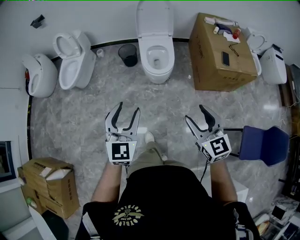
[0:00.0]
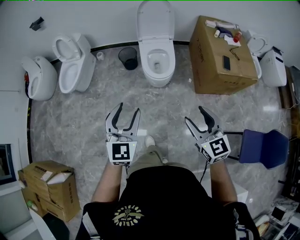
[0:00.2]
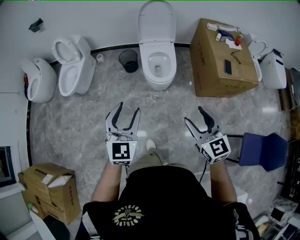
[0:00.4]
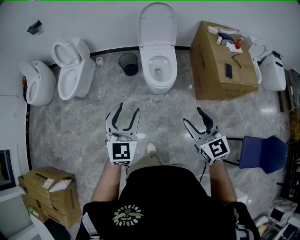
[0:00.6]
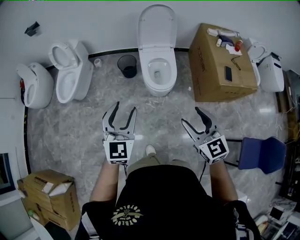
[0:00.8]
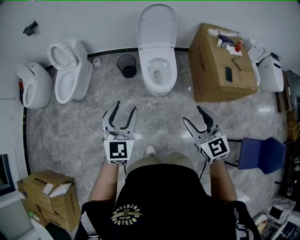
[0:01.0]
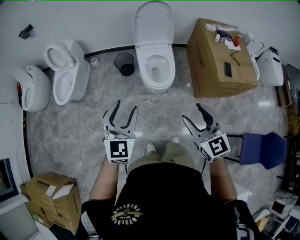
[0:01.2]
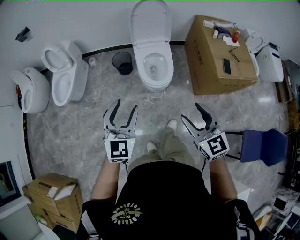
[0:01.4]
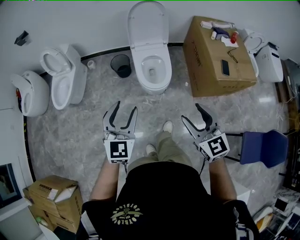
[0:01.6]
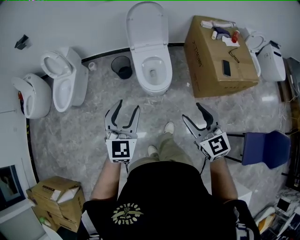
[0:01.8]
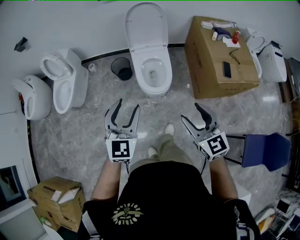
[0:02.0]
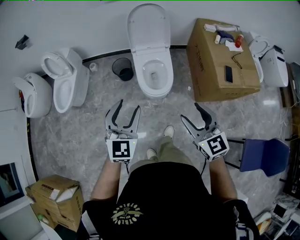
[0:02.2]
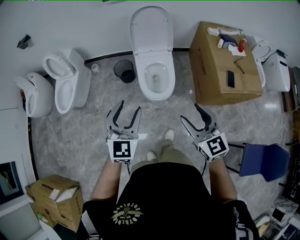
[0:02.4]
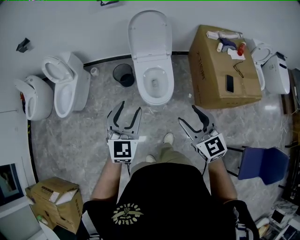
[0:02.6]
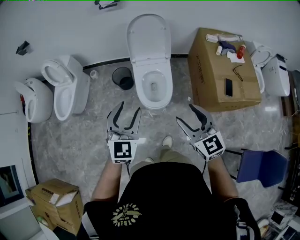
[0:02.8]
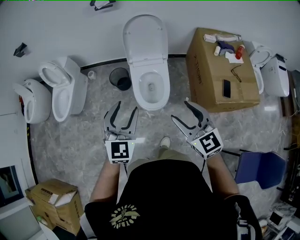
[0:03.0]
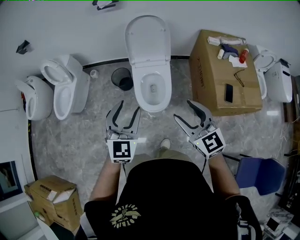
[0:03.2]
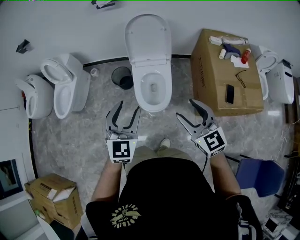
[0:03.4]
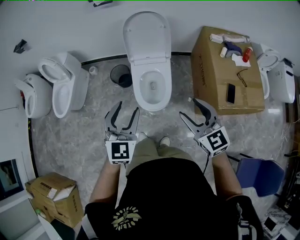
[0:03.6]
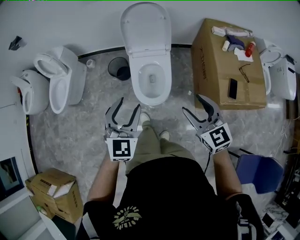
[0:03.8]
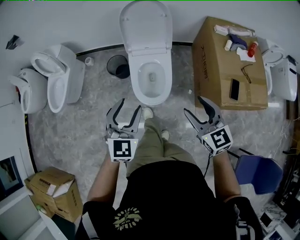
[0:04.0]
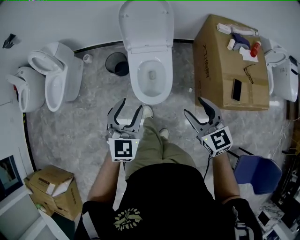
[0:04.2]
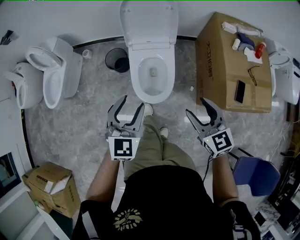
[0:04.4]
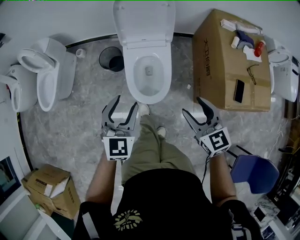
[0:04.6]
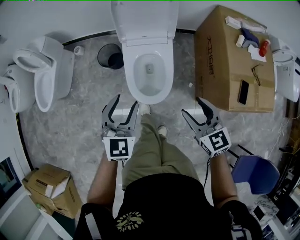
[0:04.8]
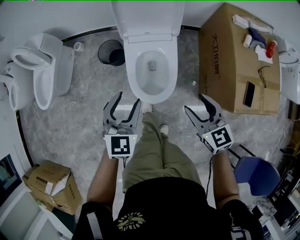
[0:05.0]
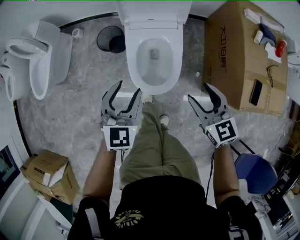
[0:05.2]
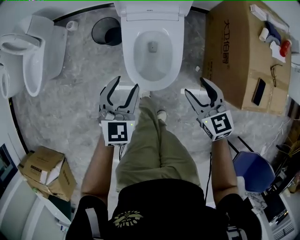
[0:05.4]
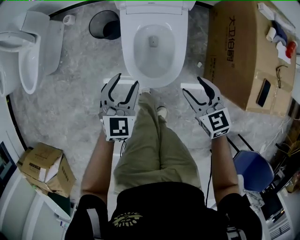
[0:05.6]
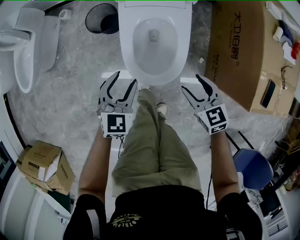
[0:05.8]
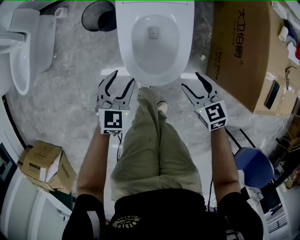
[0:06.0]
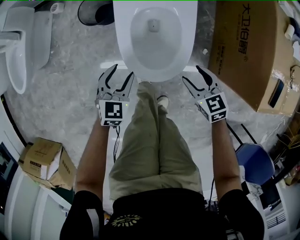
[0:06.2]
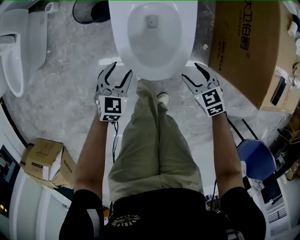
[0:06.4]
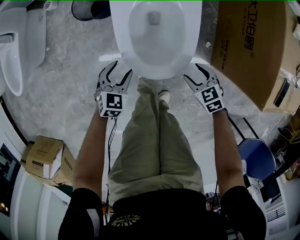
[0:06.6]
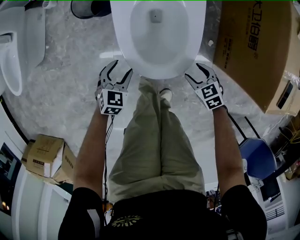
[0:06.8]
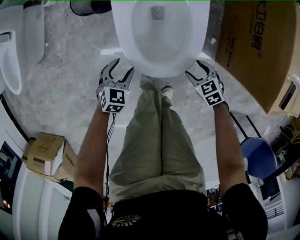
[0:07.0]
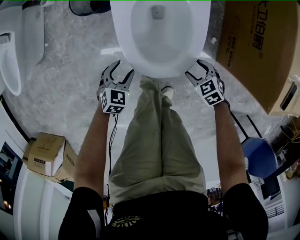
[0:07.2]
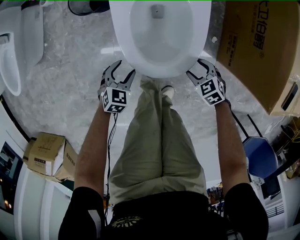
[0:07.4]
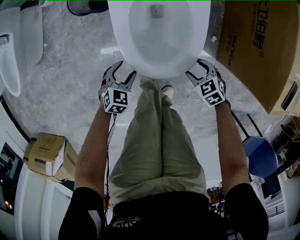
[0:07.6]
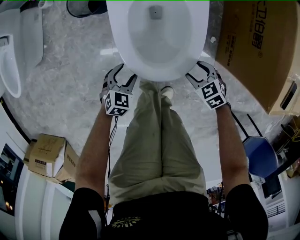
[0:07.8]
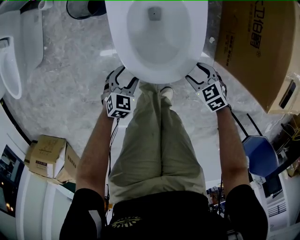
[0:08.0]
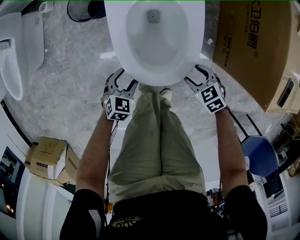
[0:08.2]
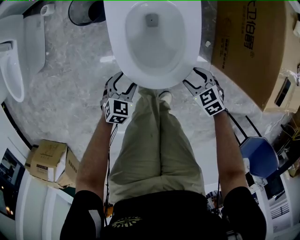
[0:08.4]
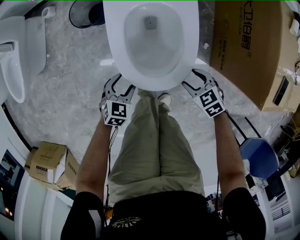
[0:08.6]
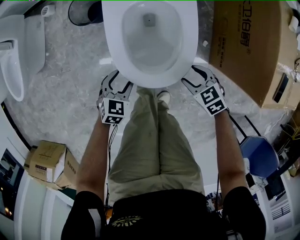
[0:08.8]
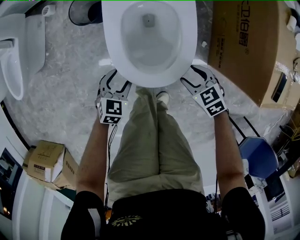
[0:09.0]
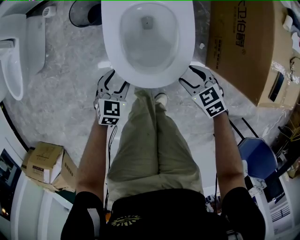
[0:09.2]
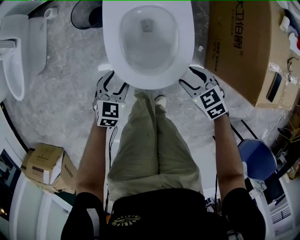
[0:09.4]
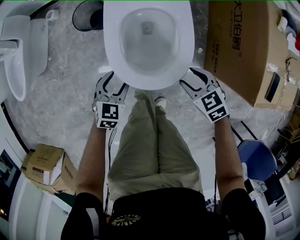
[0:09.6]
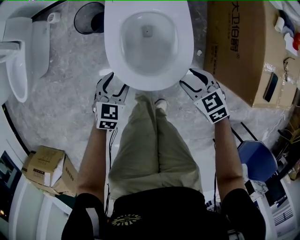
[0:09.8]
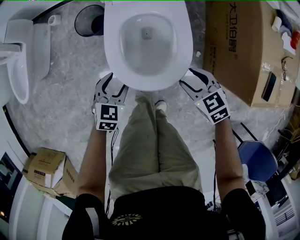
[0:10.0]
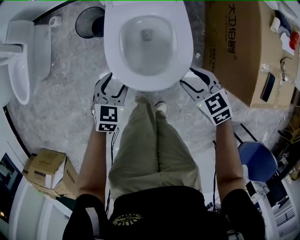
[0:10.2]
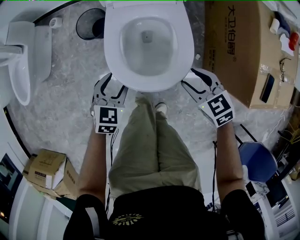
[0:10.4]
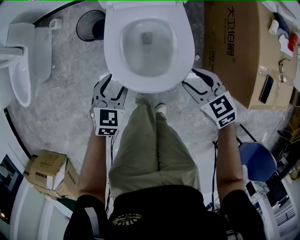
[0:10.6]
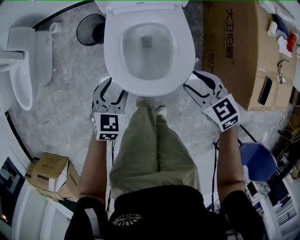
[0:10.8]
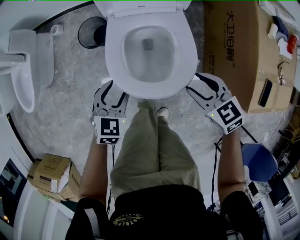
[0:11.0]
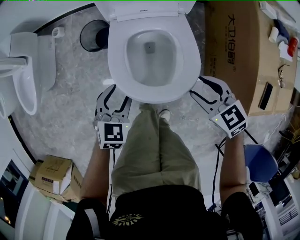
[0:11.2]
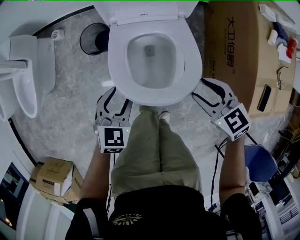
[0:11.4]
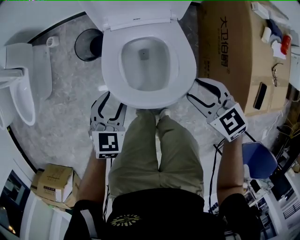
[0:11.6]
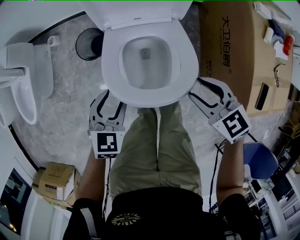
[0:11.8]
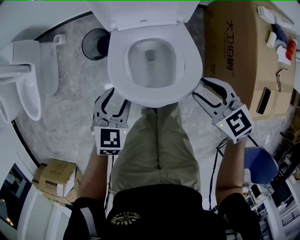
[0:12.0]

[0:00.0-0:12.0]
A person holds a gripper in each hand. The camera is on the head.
0.0 to 1.6 s: Both grippers move forward, some 20 cm.
1.6 to 3.0 s: The left gripper heads forward and to the right, covering some 20 cm. Meanwhile the right gripper moves forward, approximately 20 cm.
3.0 to 4.4 s: The left gripper goes about 15 cm downward and forward; the right gripper heads downward, forward and to the right, covering approximately 20 cm.
4.4 to 6.0 s: The grippers both shift downward by roughly 35 cm. The right gripper rotates about 20 degrees.
6.0 to 7.6 s: The grippers both shift downward by approximately 20 cm. The right gripper changes its angle by approximately 30 degrees. Meanwhile the left gripper swivels approximately 20 degrees.
7.6 to 9.0 s: Both grippers move upward, some 10 cm.
9.0 to 10.4 s: The grippers both shift upward and forward by some 15 cm.
10.4 to 12.0 s: The grippers both shift upward and forward by approximately 15 cm.

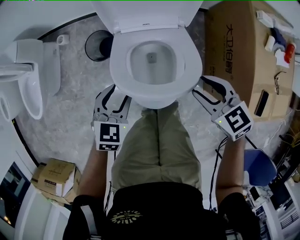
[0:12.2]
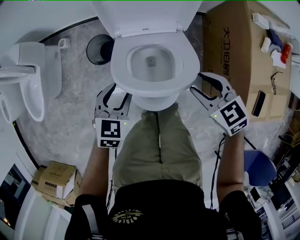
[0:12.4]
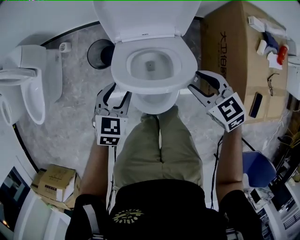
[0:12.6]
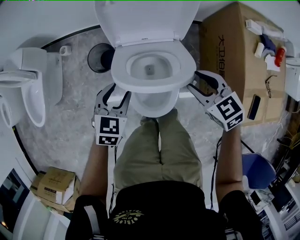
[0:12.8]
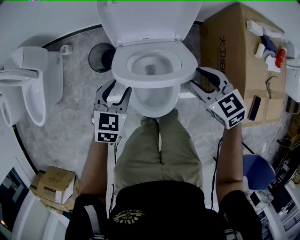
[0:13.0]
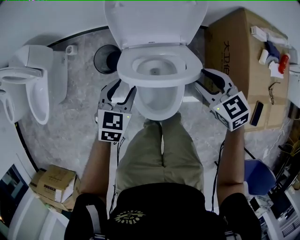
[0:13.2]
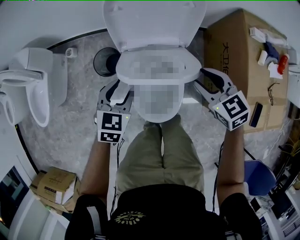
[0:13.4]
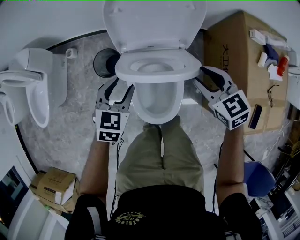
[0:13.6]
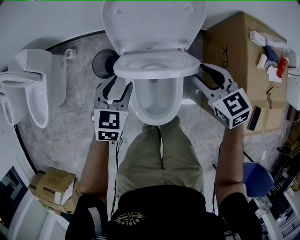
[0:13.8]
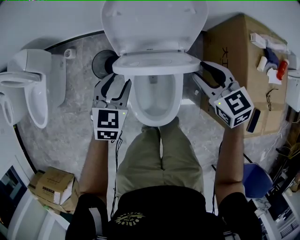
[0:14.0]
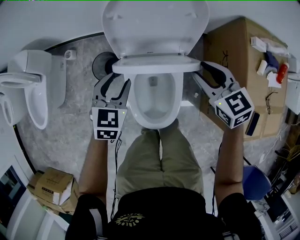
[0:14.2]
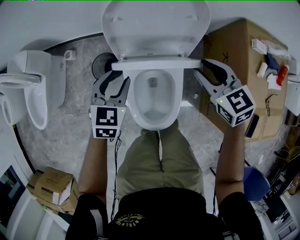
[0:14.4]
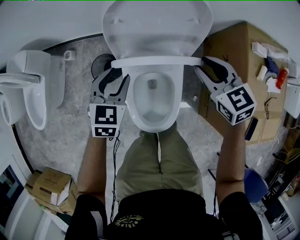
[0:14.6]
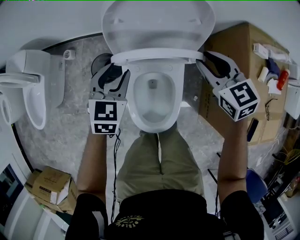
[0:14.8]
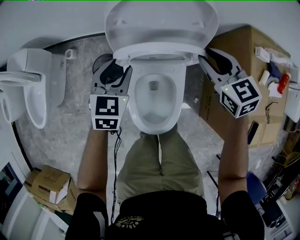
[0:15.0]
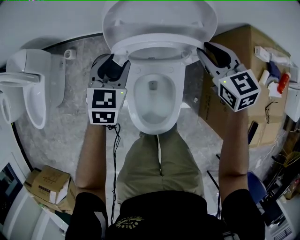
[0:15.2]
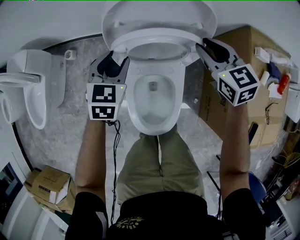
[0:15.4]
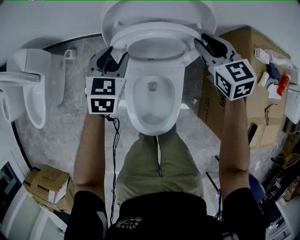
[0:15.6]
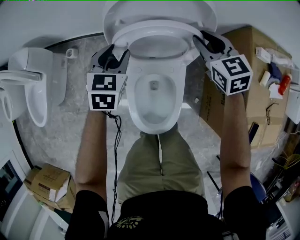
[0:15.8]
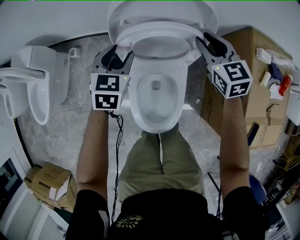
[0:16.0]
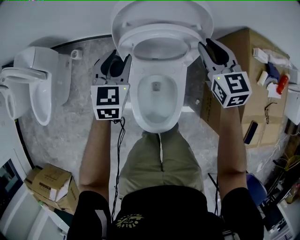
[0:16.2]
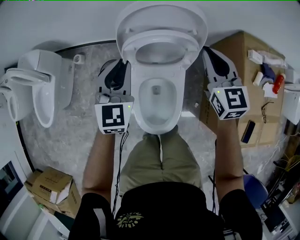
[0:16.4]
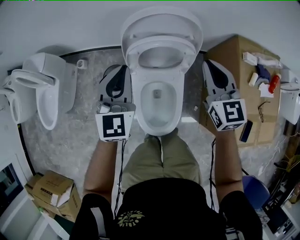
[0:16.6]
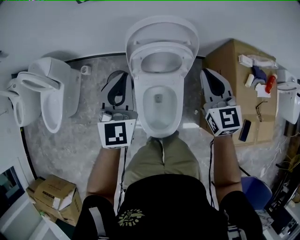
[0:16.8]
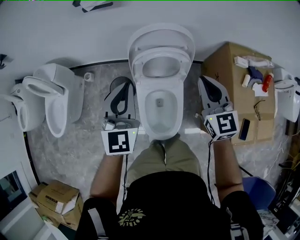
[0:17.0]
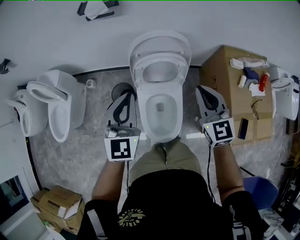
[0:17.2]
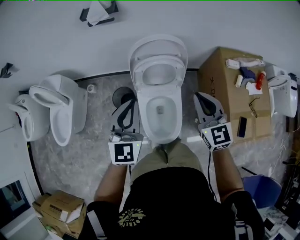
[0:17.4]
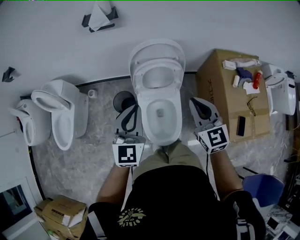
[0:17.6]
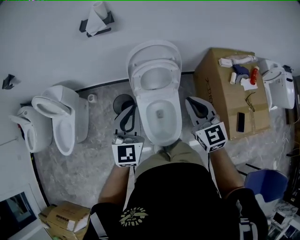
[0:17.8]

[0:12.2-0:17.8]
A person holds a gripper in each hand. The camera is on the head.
12.2 to 13.6 s: The two grippers go roughly 10 cm forward.
13.6 to 15.0 s: The grippers both shift forward by about 15 cm.
15.0 to 16.4 s: The two grippers go some 10 cm upward. The right gripper swivels about 20 degrees, and closes up. The left gripper closes up.
16.4 to 17.8 s: The left gripper goes approximately 25 cm upward and backward; the right gripper travels backward and upward by roughly 25 cm.

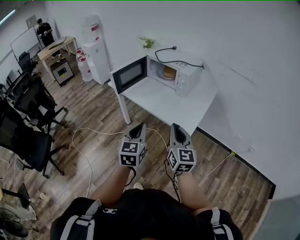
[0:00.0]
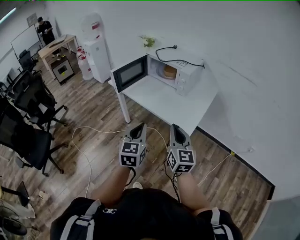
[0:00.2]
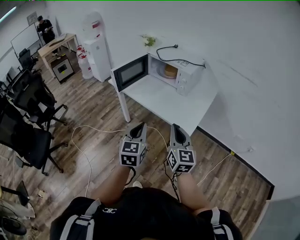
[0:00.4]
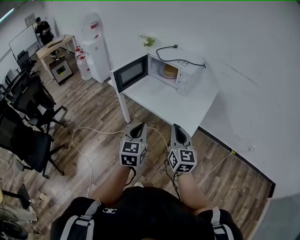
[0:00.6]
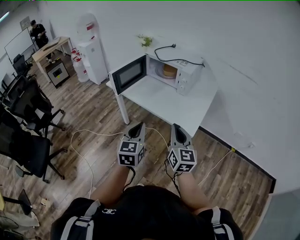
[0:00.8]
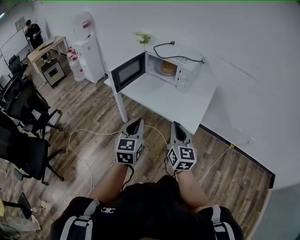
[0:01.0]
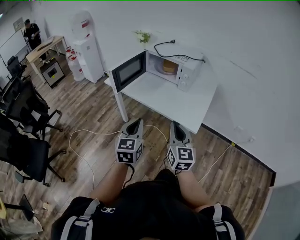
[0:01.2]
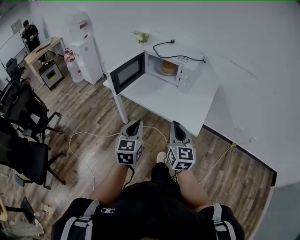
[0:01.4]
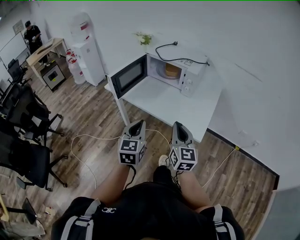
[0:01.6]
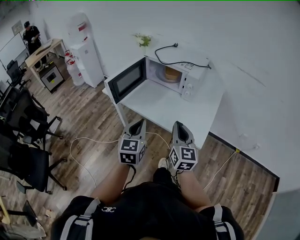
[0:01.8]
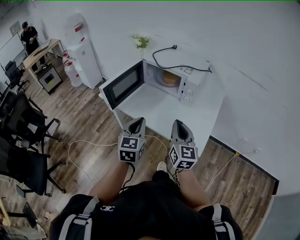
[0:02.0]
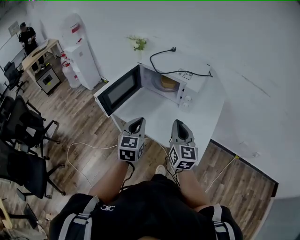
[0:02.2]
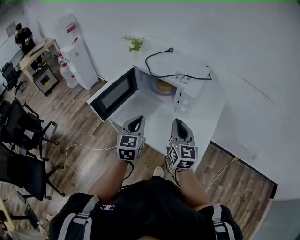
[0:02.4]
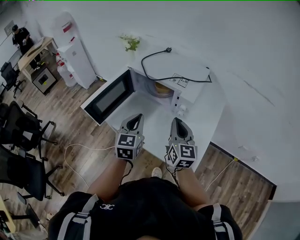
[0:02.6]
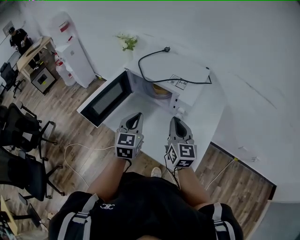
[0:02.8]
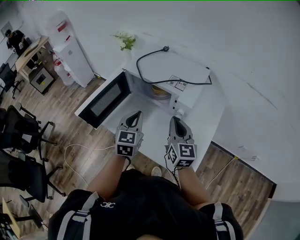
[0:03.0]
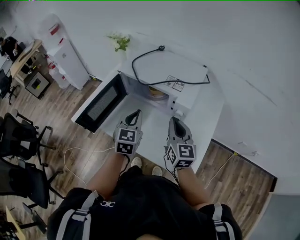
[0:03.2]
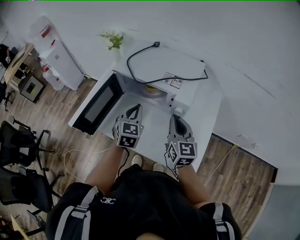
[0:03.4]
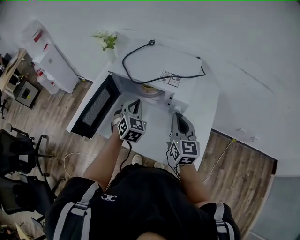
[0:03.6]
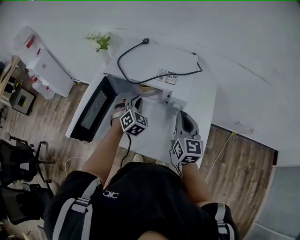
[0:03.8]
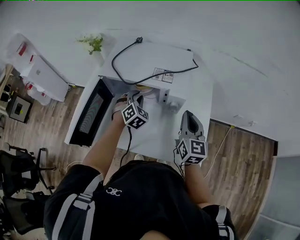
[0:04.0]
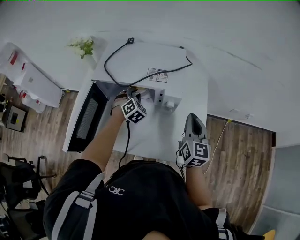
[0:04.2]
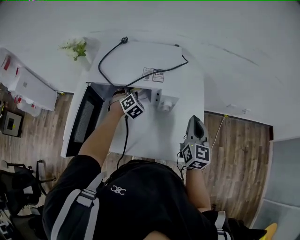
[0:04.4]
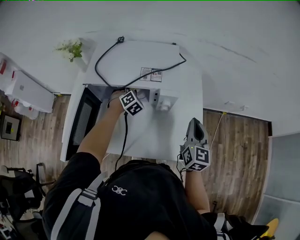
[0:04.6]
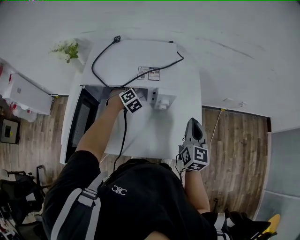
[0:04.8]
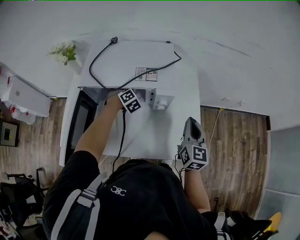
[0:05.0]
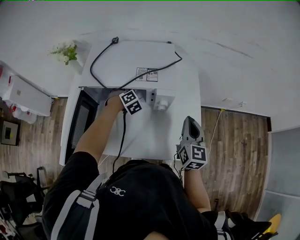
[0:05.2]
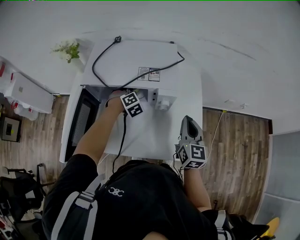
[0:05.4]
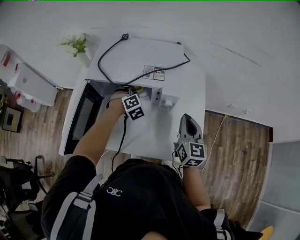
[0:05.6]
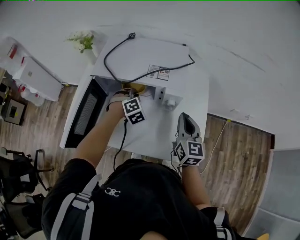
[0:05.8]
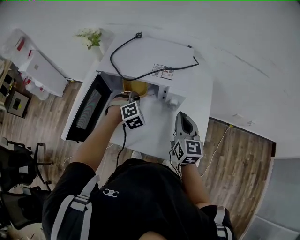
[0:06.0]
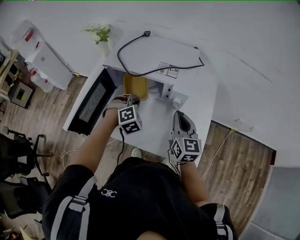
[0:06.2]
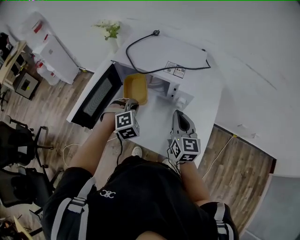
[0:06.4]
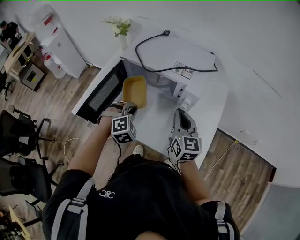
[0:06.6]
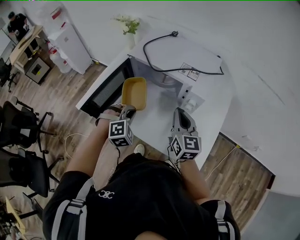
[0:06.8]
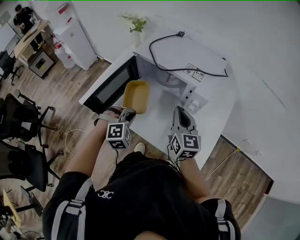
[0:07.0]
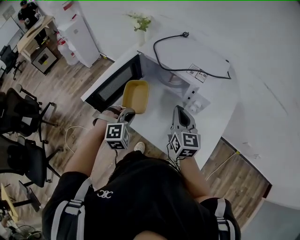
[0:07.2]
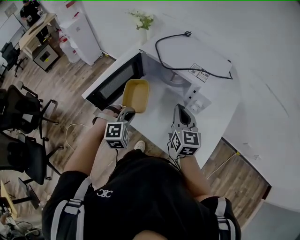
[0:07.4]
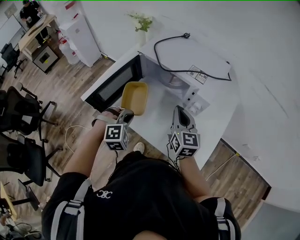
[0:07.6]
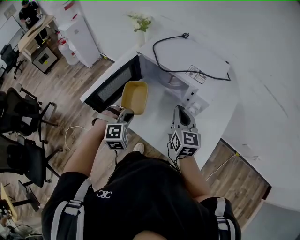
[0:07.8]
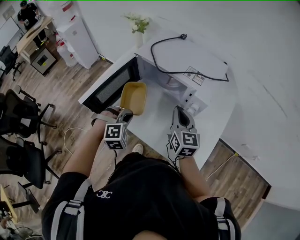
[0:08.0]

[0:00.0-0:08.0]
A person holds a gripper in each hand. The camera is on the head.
0.0 to 1.6 s: The two grippers go some 10 cm forward and to the left.
1.6 to 3.2 s: The grippers both shift forward by approximately 40 cm.
3.2 to 4.8 s: The right gripper travels to the right by some 10 cm, and swivels approximately 40 degrees, while the left gripper shifts roughly 30 cm forward and downward, rolls clockwise, seen from behind, by some 60 degrees, and opens its fingers.
4.8 to 6.4 s: The left gripper travels backward and upward by approximately 20 cm, and closes up; the right gripper travels to the left by some 10 cm, and rotates approximately 30 degrees.
6.4 to 8.0 s: The right gripper heads to the left, covering roughly 5 cm; the left gripper heads to the left and backward, covering about 10 cm.
